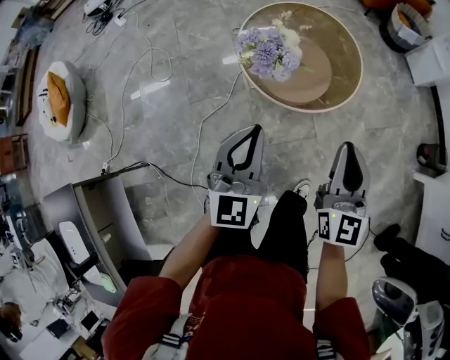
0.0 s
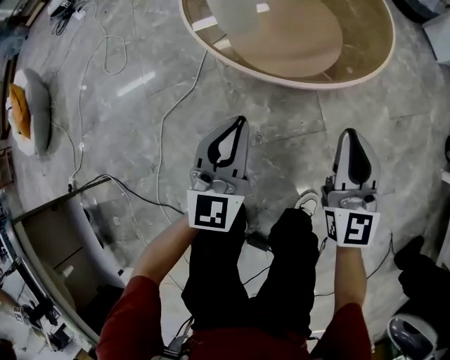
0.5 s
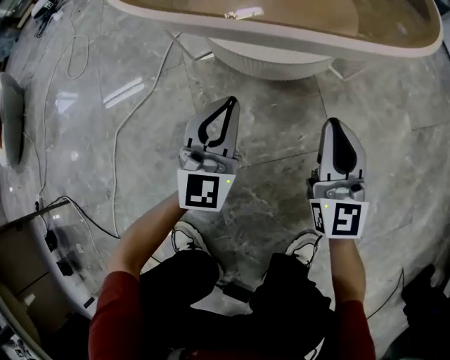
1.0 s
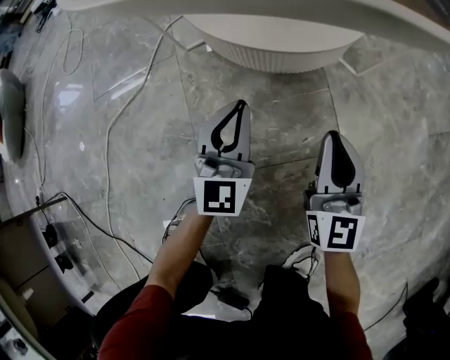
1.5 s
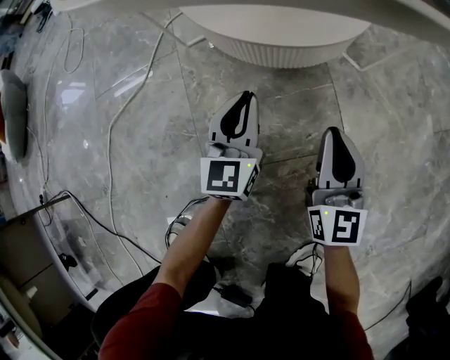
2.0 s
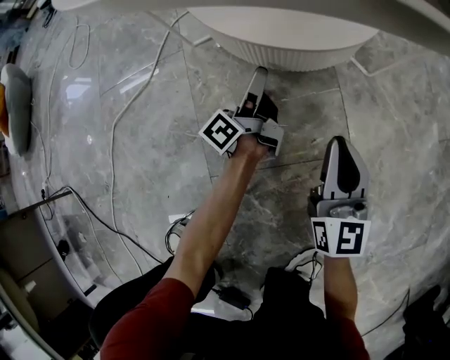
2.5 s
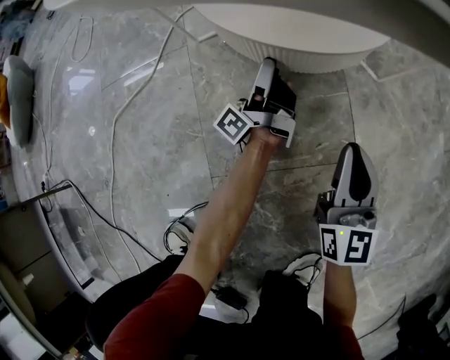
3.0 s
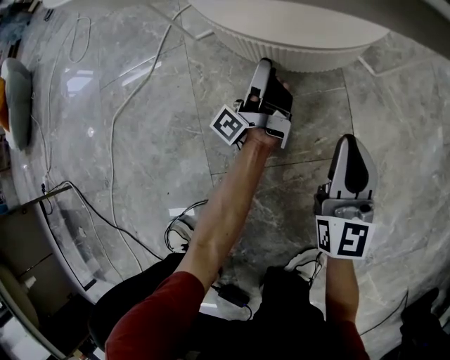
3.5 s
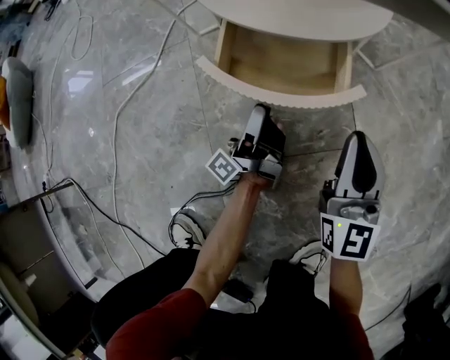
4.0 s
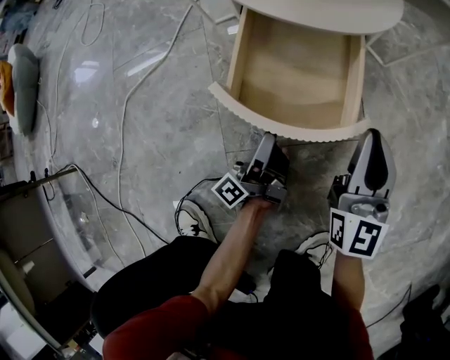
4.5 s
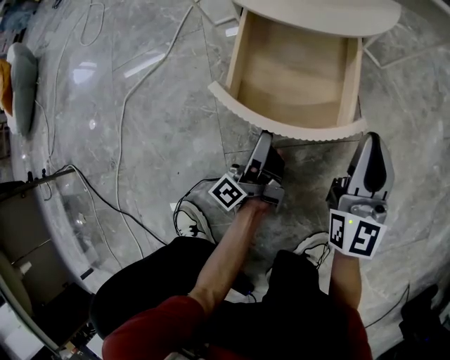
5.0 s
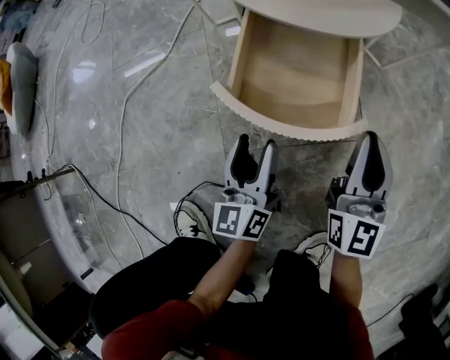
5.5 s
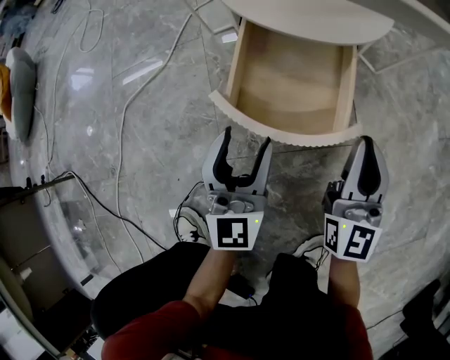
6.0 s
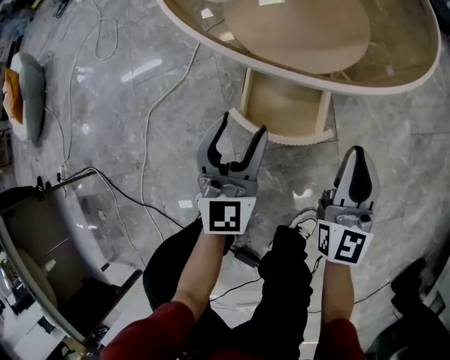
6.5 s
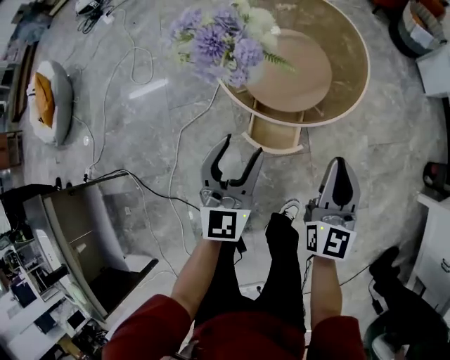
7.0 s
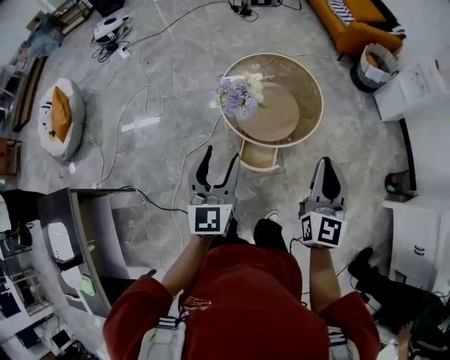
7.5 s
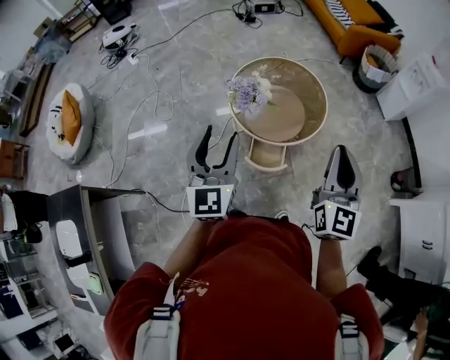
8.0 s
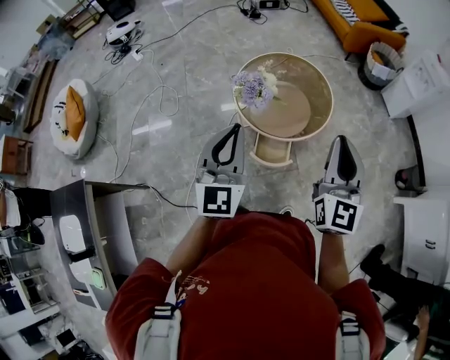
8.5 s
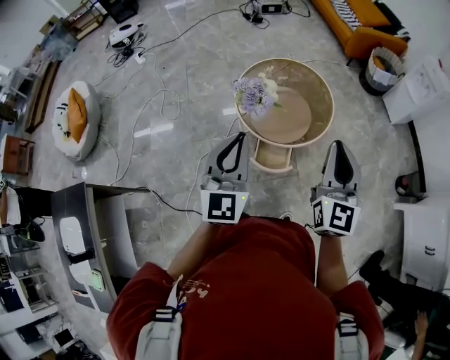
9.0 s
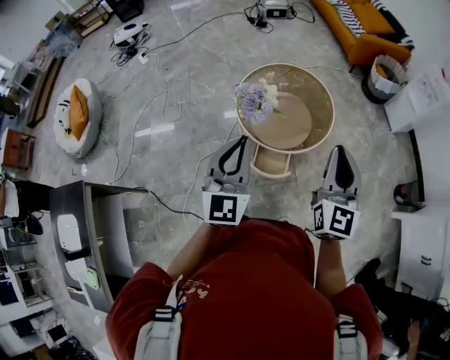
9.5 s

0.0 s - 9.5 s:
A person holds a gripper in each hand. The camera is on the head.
0.0 s - 2.0 s: Both grippers move downward, roughly 70 cm.
2.0 s - 4.0 s: The left gripper moves downward, roughly 5 cm, travels forward and back again, approximately 10 cm each way, rotates around the line of its fingers by roughly 80 degrees, counterclockwise from behind, and opens.
4.0 s - 5.5 s: The left gripper moves backward and upward, about 10 cm, and rotates around the line of its fingers by approximately 60 degrees, clockwise from behind.
5.5 s - 7.5 s: Both grippers travel together upward, about 80 cm. The left gripper rotates roughly 30 degrees.
7.5 s - 9.5 s: The left gripper travels upward by some 5 cm, and closes its fingers.

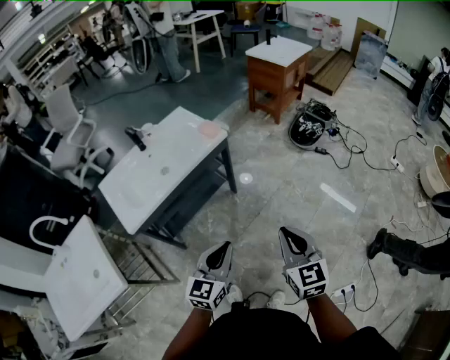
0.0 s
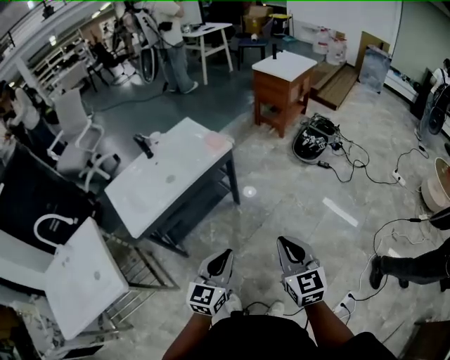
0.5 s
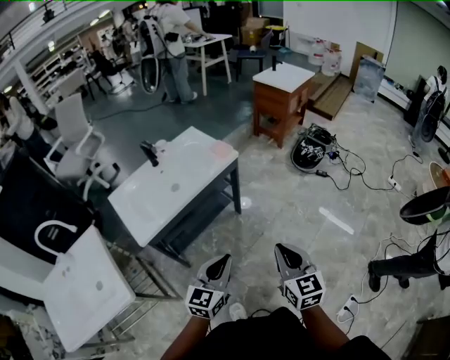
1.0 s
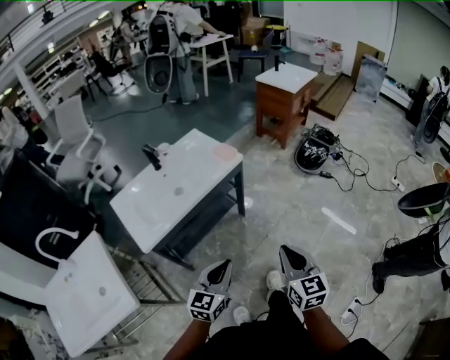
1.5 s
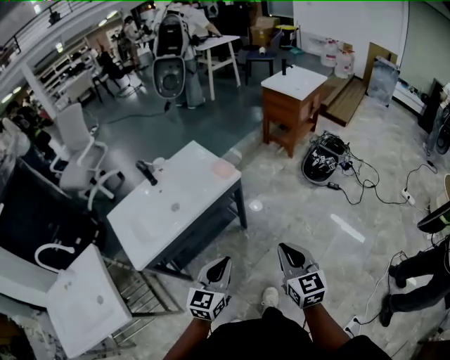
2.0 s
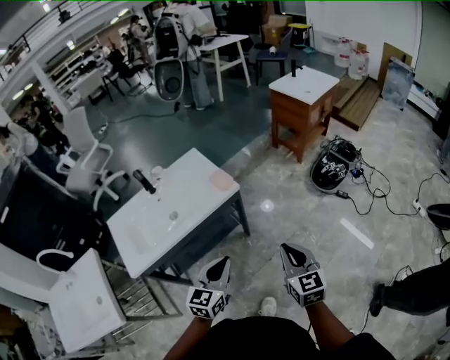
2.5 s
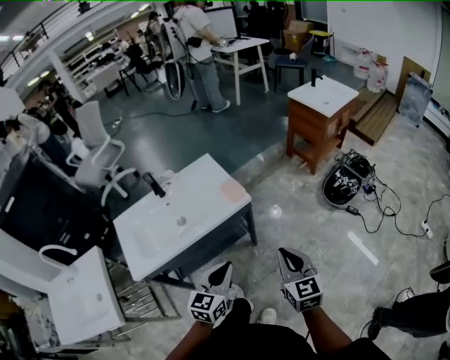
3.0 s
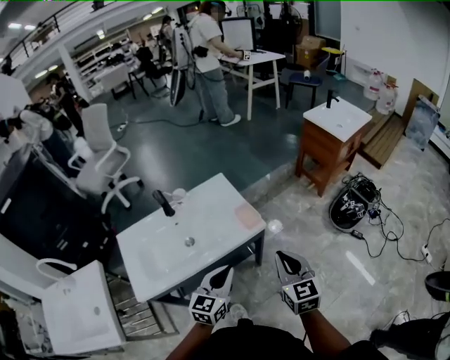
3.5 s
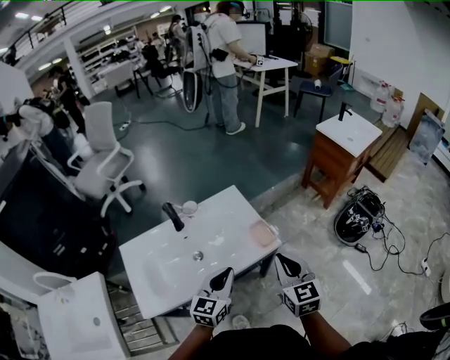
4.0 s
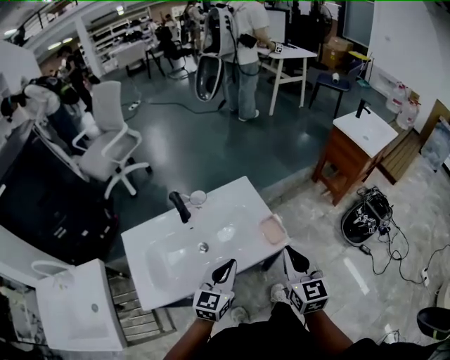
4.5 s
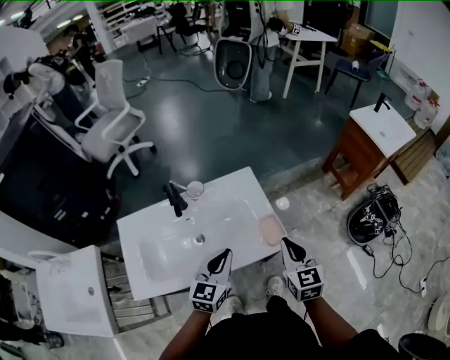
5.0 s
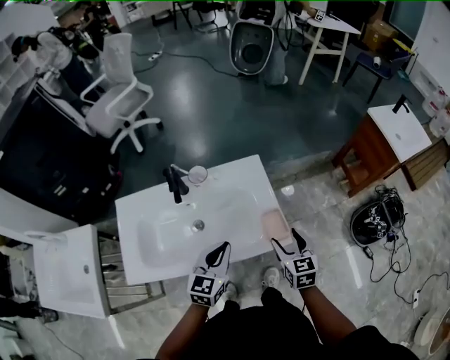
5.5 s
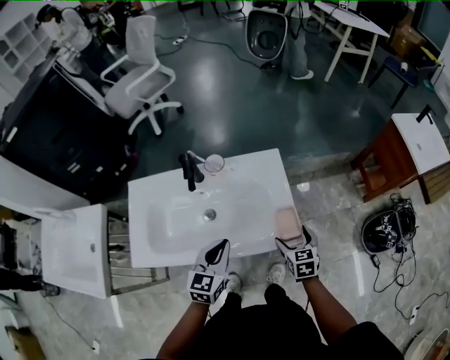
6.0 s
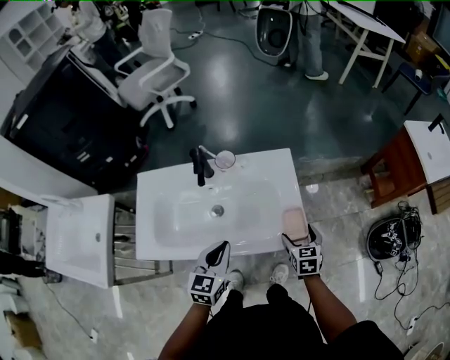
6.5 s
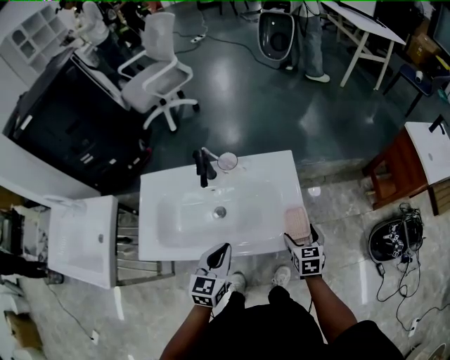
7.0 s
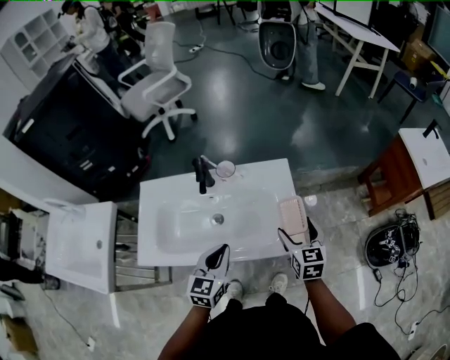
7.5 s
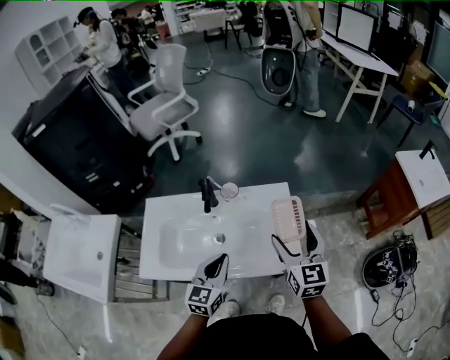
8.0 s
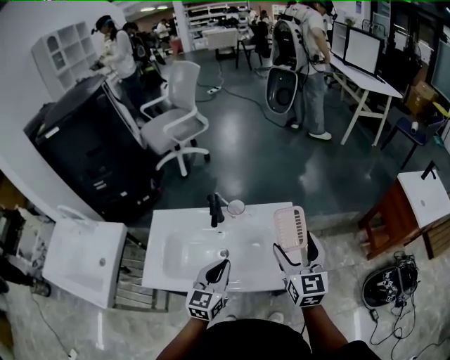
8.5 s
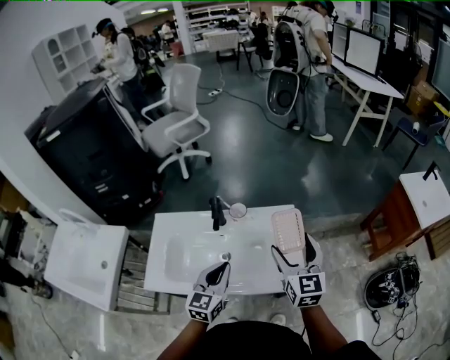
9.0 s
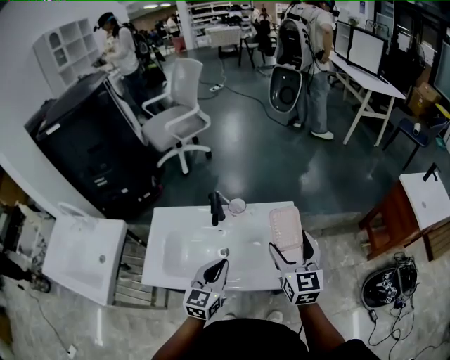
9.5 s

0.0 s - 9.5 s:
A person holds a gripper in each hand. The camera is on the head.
0.0 s - 2.0 s: Both grippers move forward, roughly 10 cm.
2.0 s - 4.0 s: Both grippers travel together forward, about 30 cm.
4.0 s - 5.5 s: The right gripper goes approximately 20 cm downward and forward, swivels about 20 degrees, and opens its fingers. Meanwhile the left gripper is displaced forward by some 10 cm.
5.5 s - 7.5 s: The left gripper is displaced to the left by roughly 5 cm, while the right gripper heads forward, covering roughly 5 cm, and reaches about 10 cm downward, then returns.
7.5 s - 9.5 s: The left gripper moves upward, some 5 cm, while the right gripper travels upward by some 15 cm, and rotates about 20 degrees.

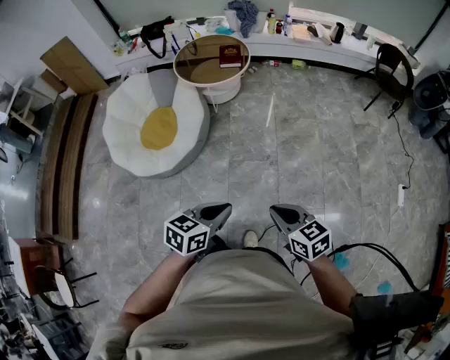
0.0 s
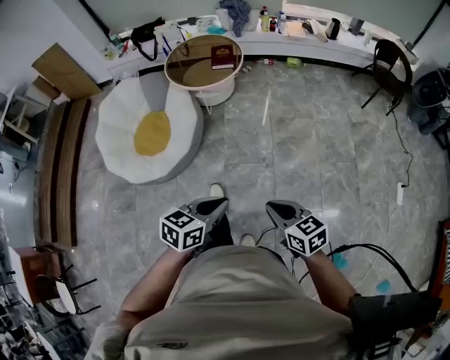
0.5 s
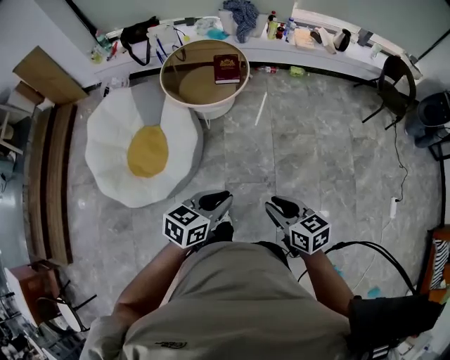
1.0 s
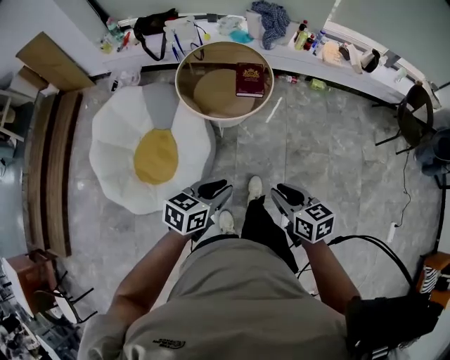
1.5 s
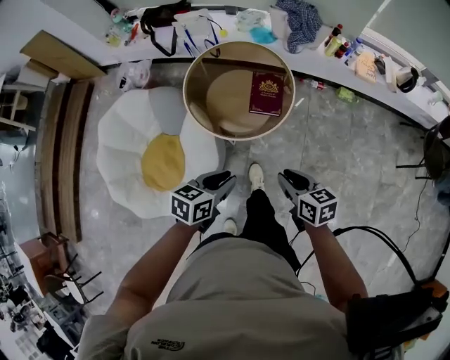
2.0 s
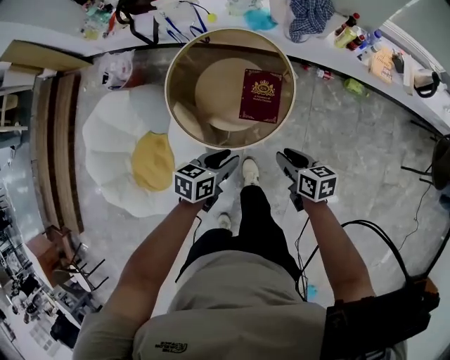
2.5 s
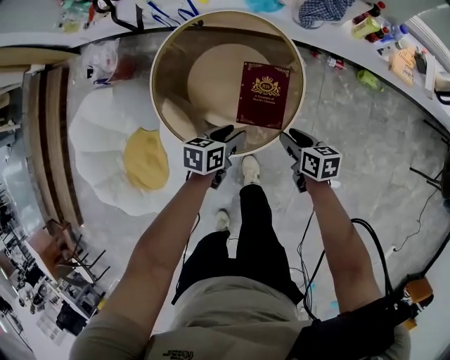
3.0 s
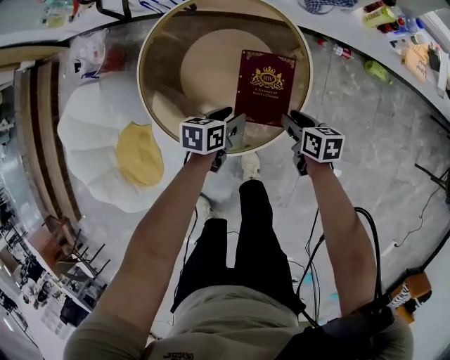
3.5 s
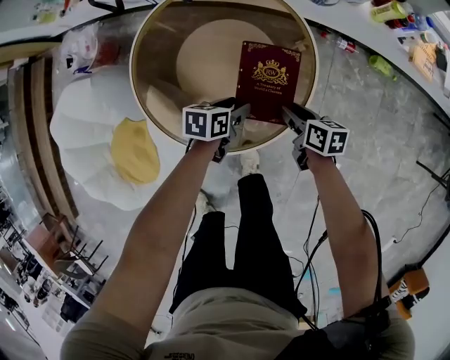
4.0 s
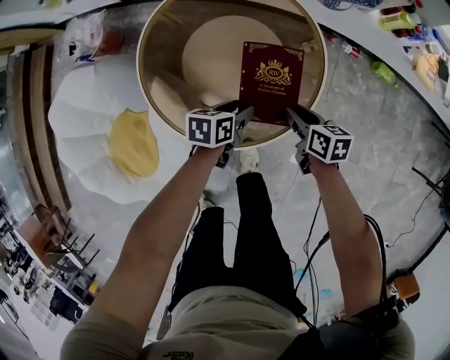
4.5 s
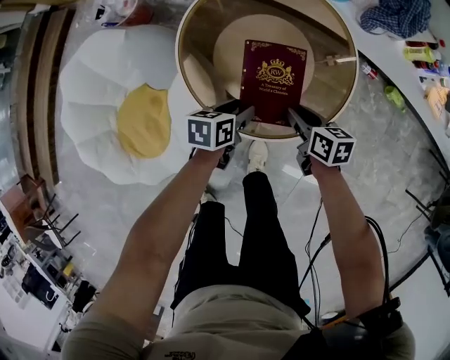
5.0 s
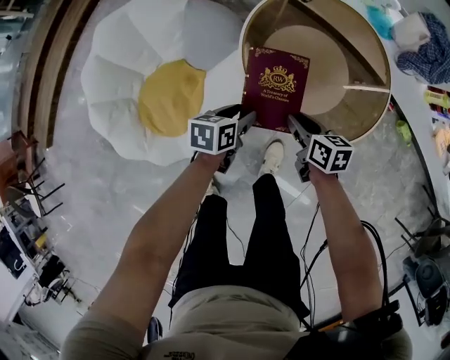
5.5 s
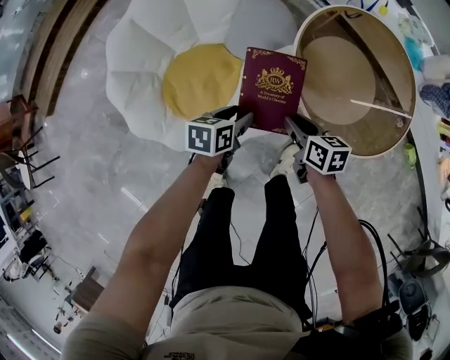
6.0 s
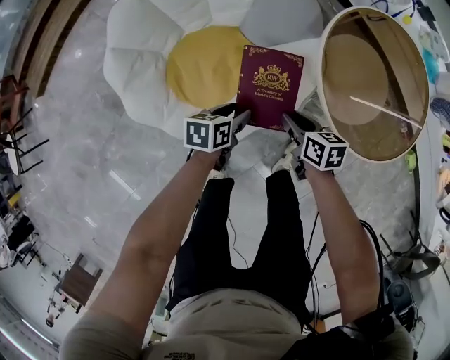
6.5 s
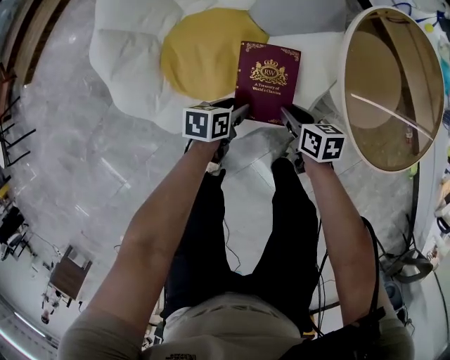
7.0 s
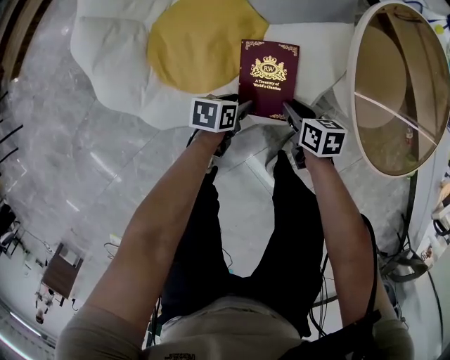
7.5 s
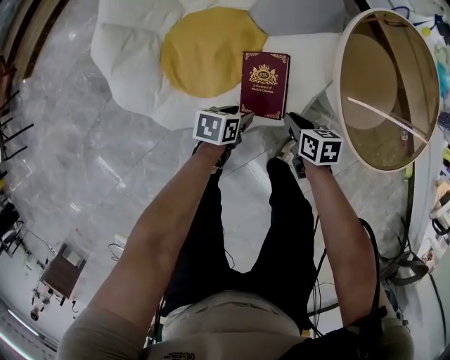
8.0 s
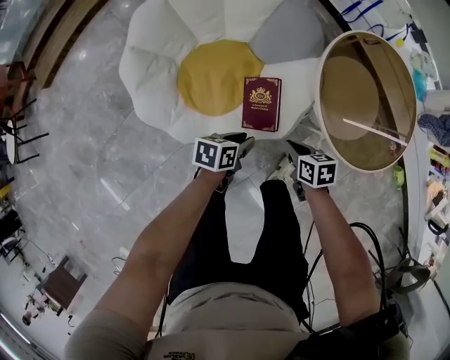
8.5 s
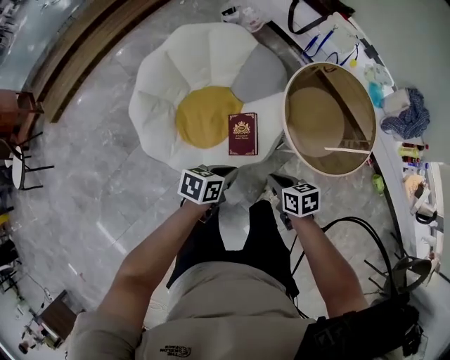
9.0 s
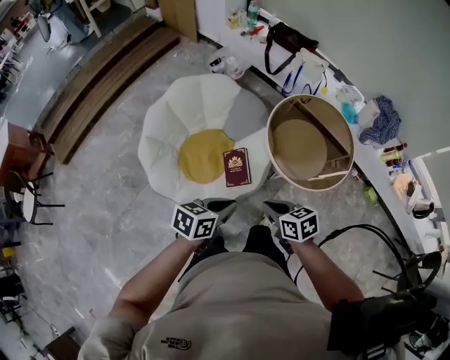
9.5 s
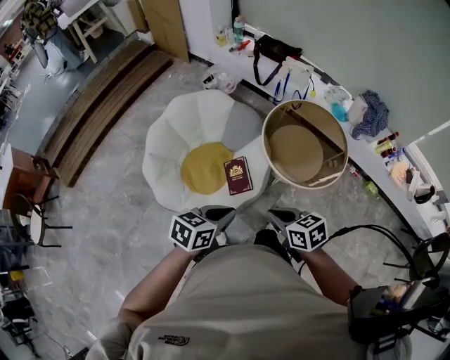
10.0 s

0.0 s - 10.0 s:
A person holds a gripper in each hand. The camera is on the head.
0.0 s - 2.0 s: The pair of grippers is taken forward, roughly 70 cm.
2.0 s - 4.0 s: The two grippers go approximately 50 cm downward and forward. The right gripper changes its angle by about 20 degrees. Meanwhile the left gripper rotates approximately 20 degrees, and opens up.
4.0 s - 6.0 s: Both grippers are carried some 40 cm. The right gripper turns by roughly 30 degrees. Meanwhile the left gripper rotates approximately 30 degrees.
6.0 s - 8.0 s: The left gripper travels downward and backward by some 20 cm; the right gripper is displaced downward and to the left by approximately 20 cm.
8.0 s - 10.0 s: Both grippers travel together upward, some 50 cm. The left gripper turns by some 40 degrees, and closes. The right gripper changes its angle by about 20 degrees.
